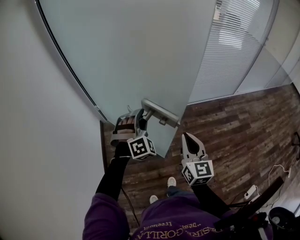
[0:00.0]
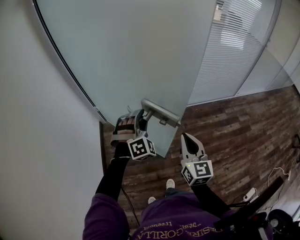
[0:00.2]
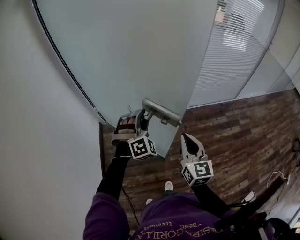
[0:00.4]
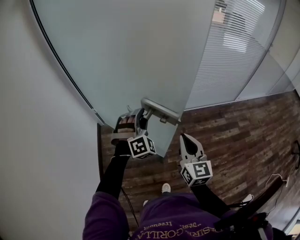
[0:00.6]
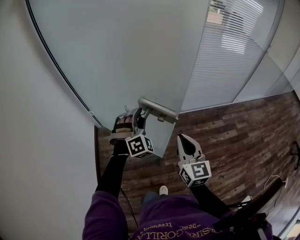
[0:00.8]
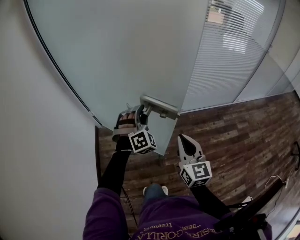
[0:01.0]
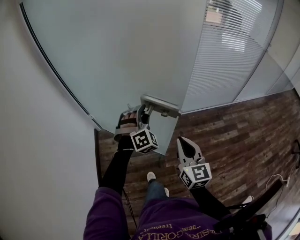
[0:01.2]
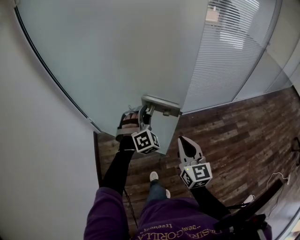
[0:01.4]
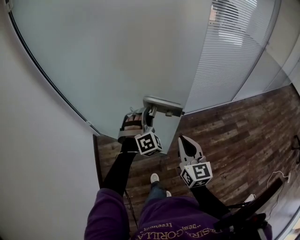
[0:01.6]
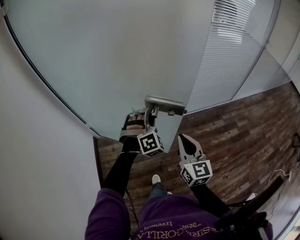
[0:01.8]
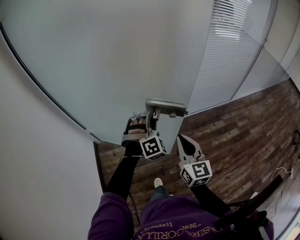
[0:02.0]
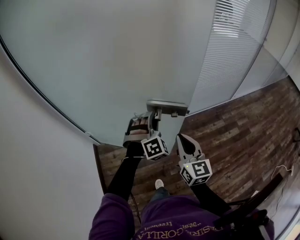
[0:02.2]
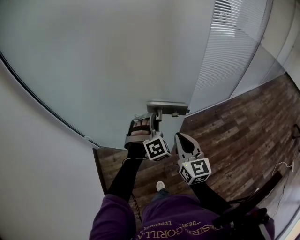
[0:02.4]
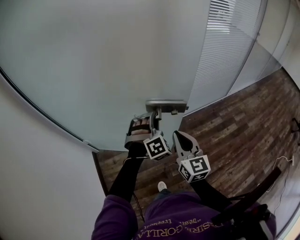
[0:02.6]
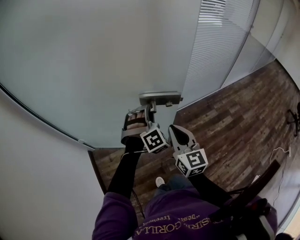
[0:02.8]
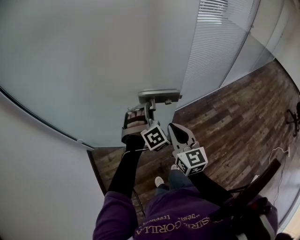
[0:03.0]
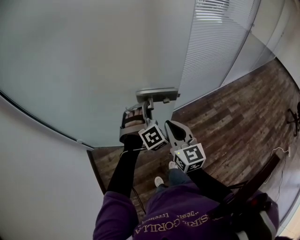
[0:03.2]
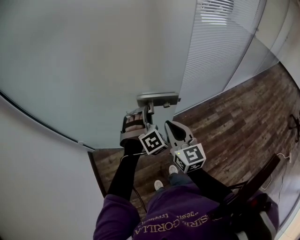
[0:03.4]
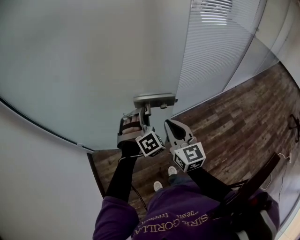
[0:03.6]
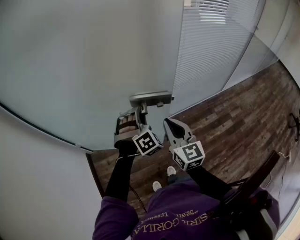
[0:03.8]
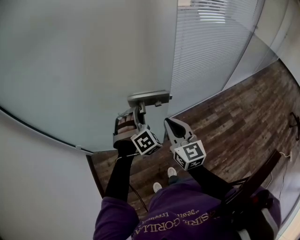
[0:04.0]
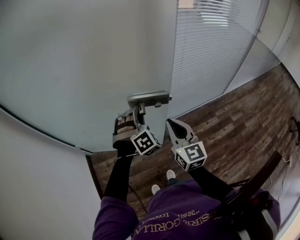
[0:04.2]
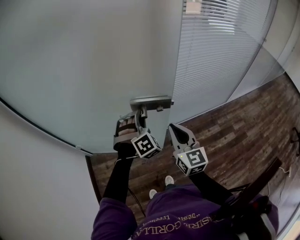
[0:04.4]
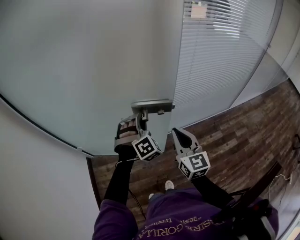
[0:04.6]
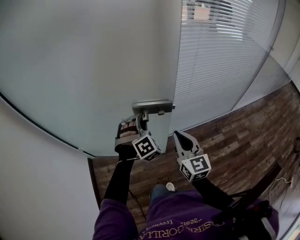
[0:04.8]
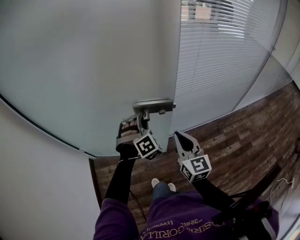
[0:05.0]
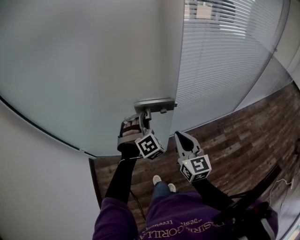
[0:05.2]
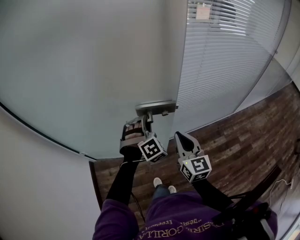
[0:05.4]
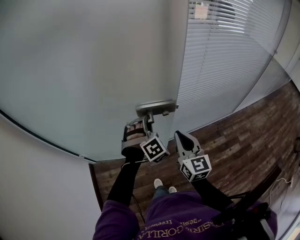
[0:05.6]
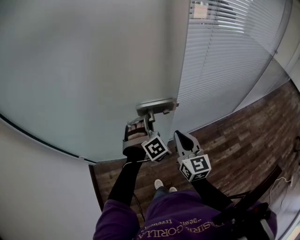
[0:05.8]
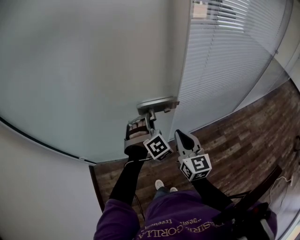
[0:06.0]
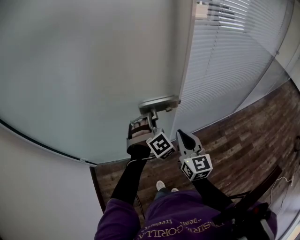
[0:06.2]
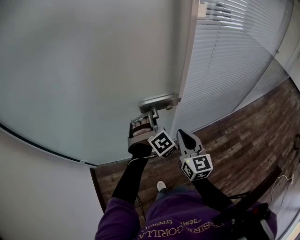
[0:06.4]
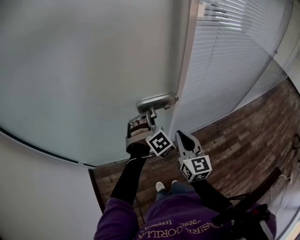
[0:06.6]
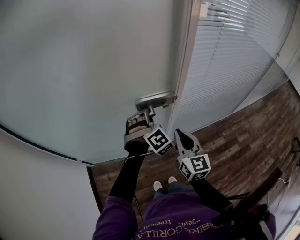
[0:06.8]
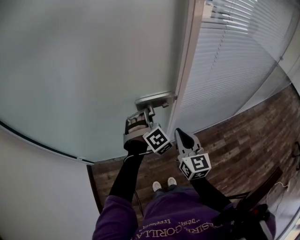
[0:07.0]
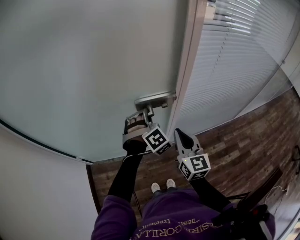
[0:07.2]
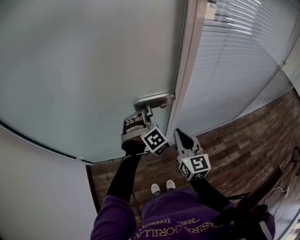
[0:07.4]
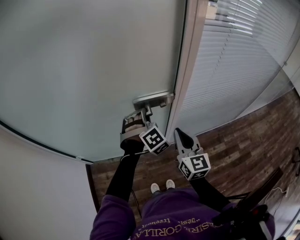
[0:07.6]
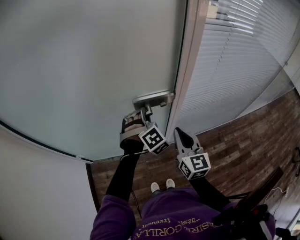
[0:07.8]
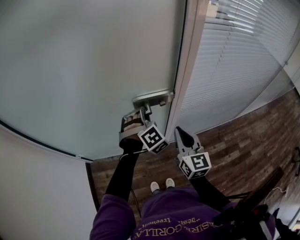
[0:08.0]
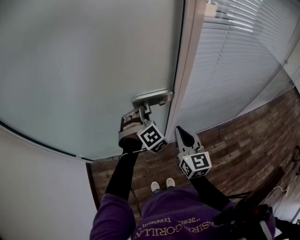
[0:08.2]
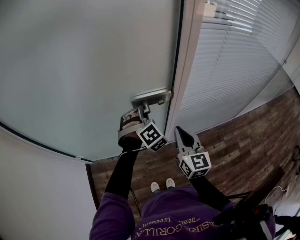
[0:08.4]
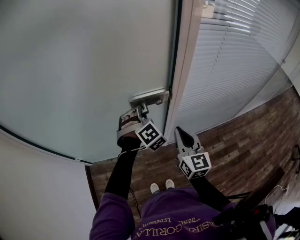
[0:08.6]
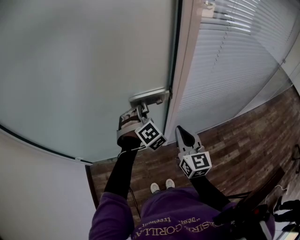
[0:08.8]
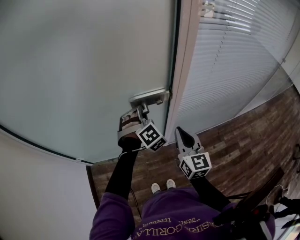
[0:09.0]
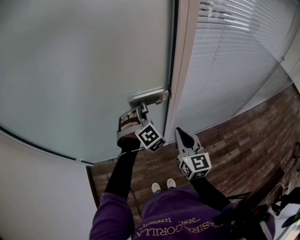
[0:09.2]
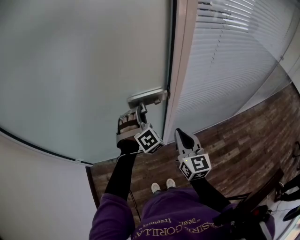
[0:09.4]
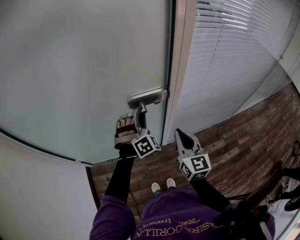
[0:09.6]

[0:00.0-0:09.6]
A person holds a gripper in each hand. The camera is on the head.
0:00.0 to 0:01.6: The two grippers go roughly 20 cm forward and to the right.
0:01.6 to 0:03.2: The grippers both shift forward by some 15 cm.
0:03.2 to 0:04.8: The right gripper travels to the right and forward by approximately 15 cm. Meanwhile the left gripper moves forward, approximately 10 cm.
0:04.8 to 0:06.4: Both grippers move forward, roughly 10 cm.
0:06.4 to 0:08.0: The left gripper changes place by roughly 5 cm.
0:08.0 to 0:09.6: The grippers stay close to where they were, moving slightly.

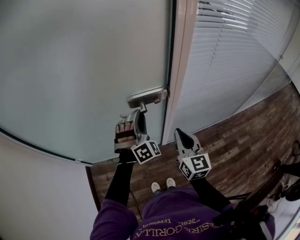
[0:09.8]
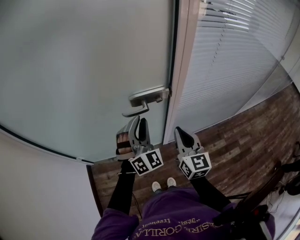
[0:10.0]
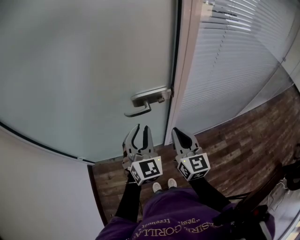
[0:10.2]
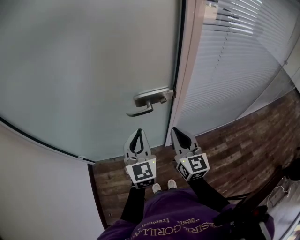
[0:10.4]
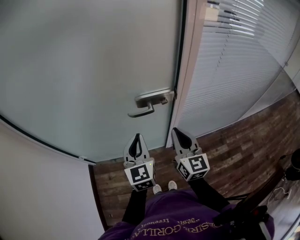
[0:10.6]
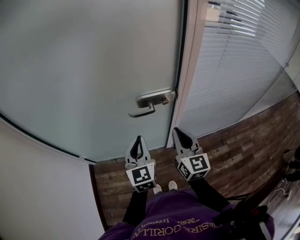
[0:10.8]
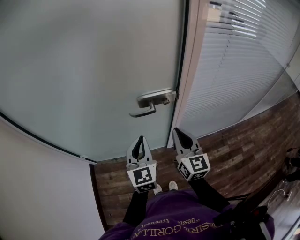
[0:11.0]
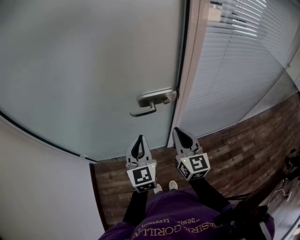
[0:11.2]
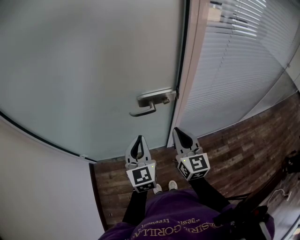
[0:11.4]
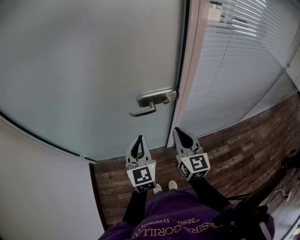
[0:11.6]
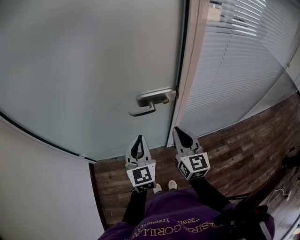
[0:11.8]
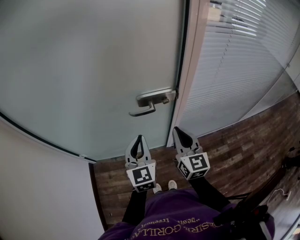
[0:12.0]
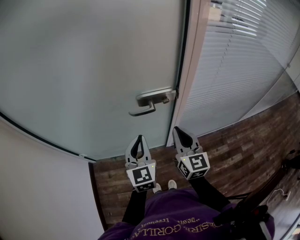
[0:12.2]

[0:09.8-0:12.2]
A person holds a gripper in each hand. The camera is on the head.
0:09.8 to 0:11.0: The left gripper goes roughly 10 cm backward and to the left, rolls counterclockwise, seen from behind, by about 70 degrees, and closes.
0:11.0 to 0:12.2: The two grippers keep their place.

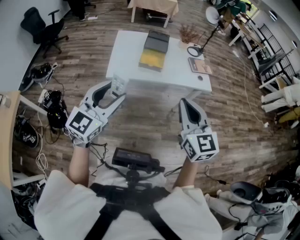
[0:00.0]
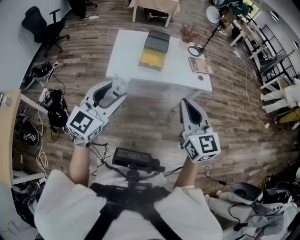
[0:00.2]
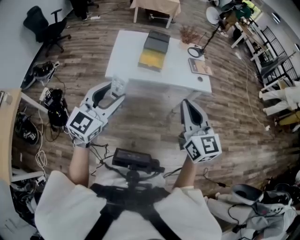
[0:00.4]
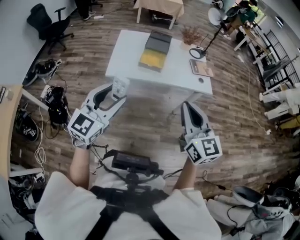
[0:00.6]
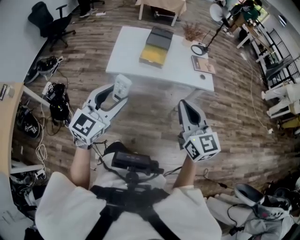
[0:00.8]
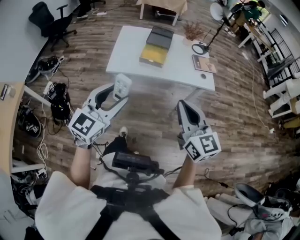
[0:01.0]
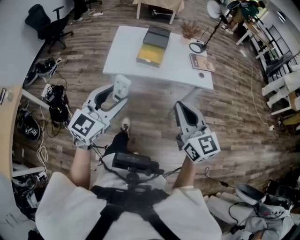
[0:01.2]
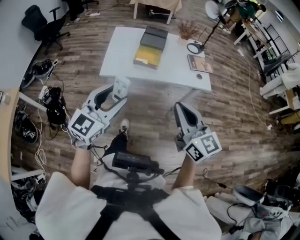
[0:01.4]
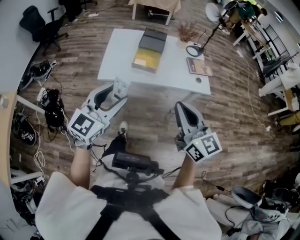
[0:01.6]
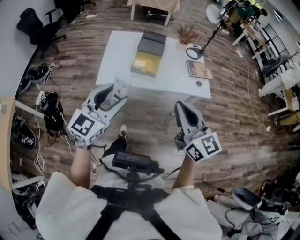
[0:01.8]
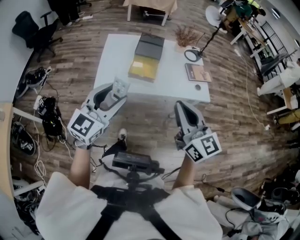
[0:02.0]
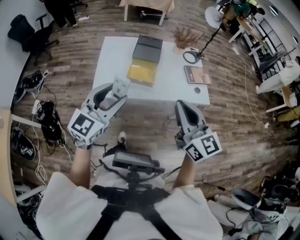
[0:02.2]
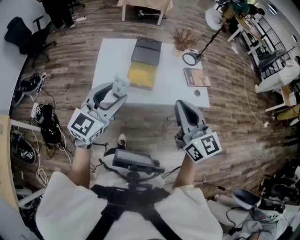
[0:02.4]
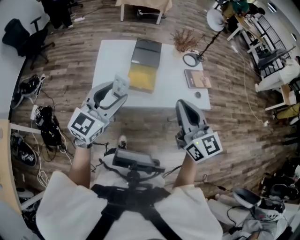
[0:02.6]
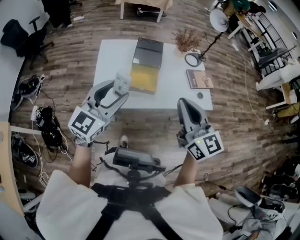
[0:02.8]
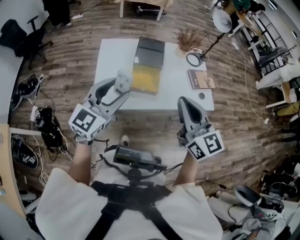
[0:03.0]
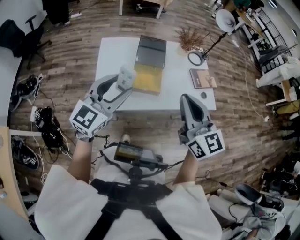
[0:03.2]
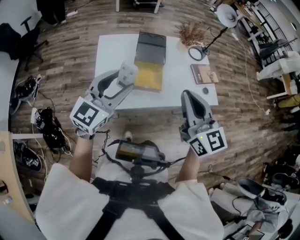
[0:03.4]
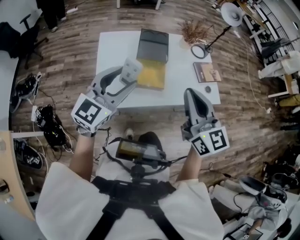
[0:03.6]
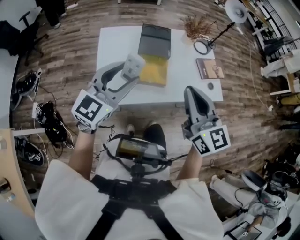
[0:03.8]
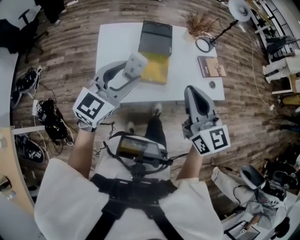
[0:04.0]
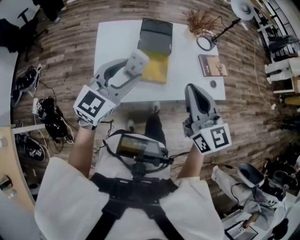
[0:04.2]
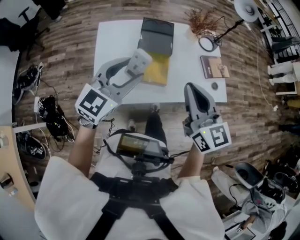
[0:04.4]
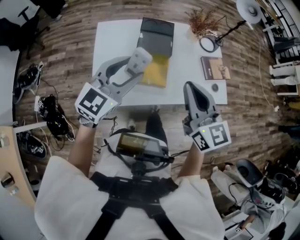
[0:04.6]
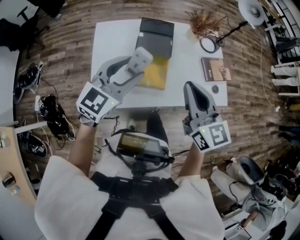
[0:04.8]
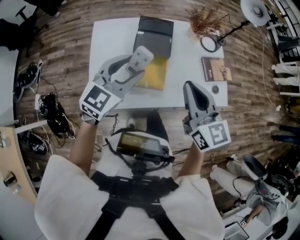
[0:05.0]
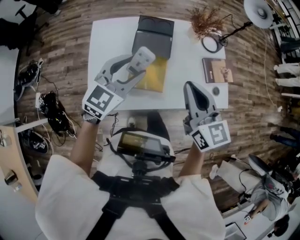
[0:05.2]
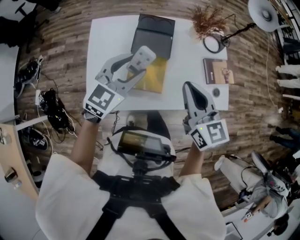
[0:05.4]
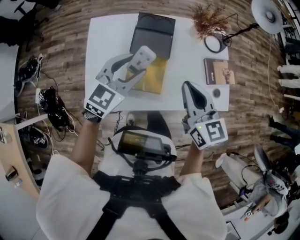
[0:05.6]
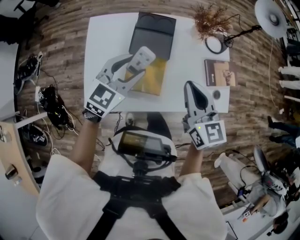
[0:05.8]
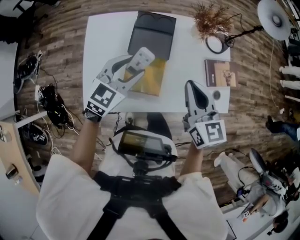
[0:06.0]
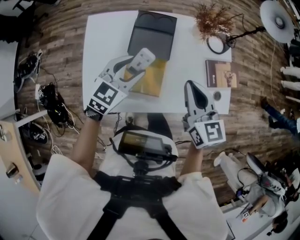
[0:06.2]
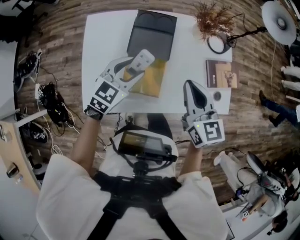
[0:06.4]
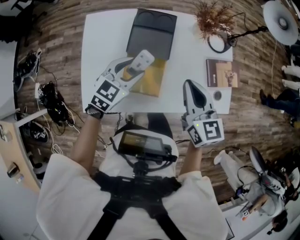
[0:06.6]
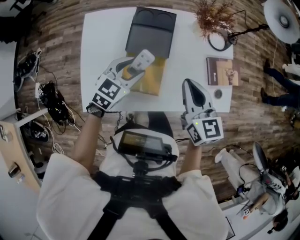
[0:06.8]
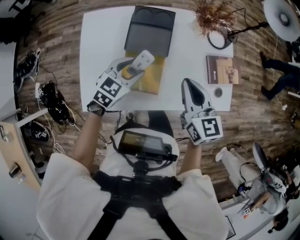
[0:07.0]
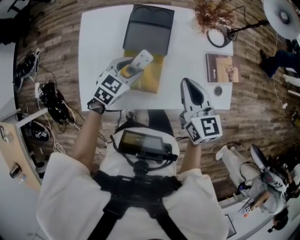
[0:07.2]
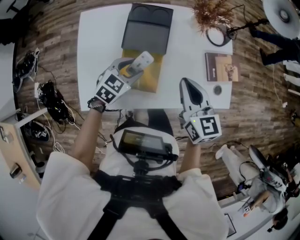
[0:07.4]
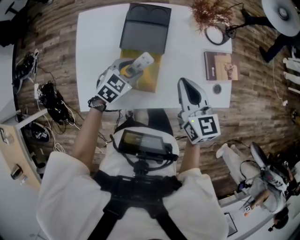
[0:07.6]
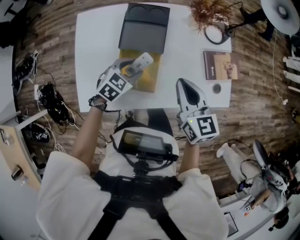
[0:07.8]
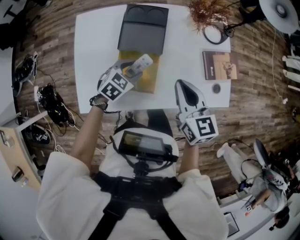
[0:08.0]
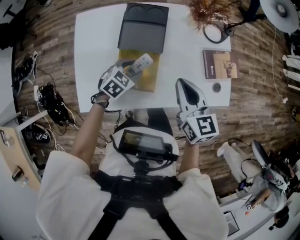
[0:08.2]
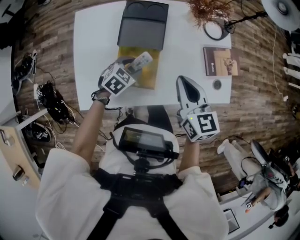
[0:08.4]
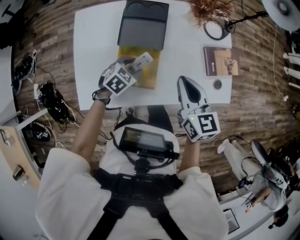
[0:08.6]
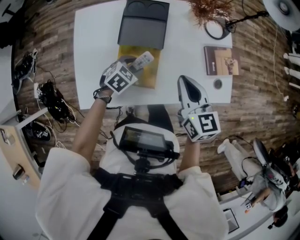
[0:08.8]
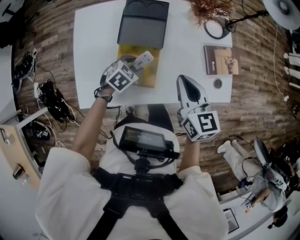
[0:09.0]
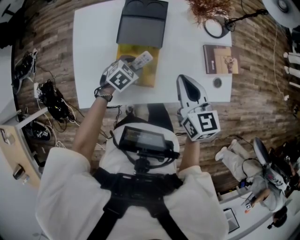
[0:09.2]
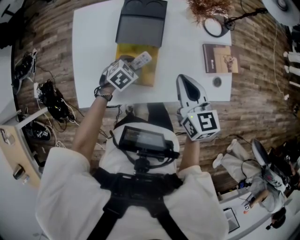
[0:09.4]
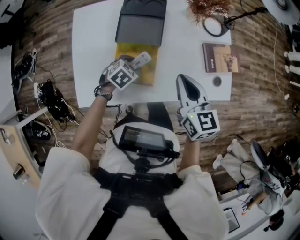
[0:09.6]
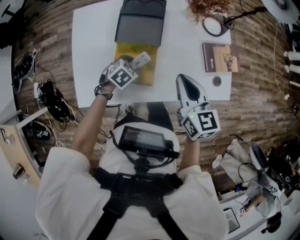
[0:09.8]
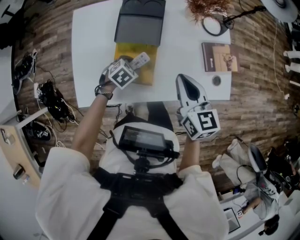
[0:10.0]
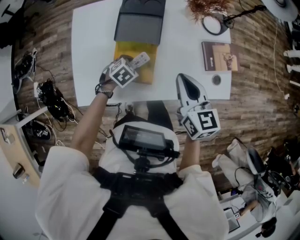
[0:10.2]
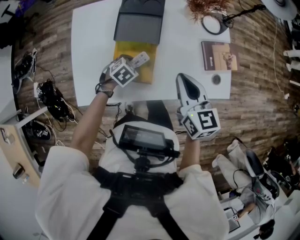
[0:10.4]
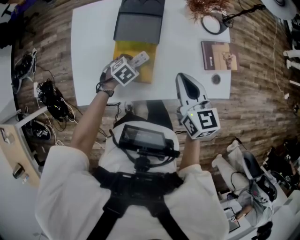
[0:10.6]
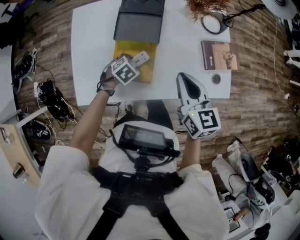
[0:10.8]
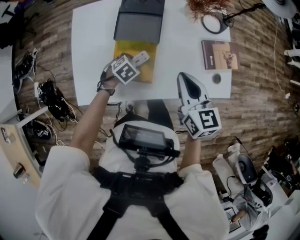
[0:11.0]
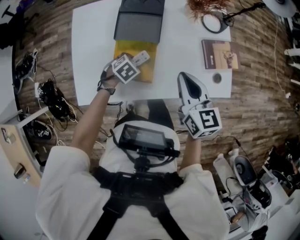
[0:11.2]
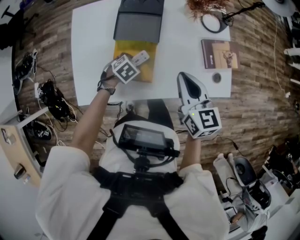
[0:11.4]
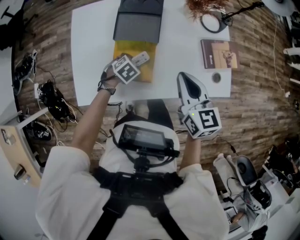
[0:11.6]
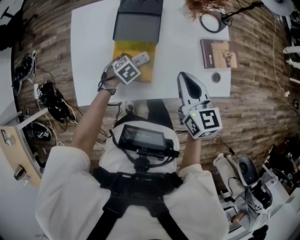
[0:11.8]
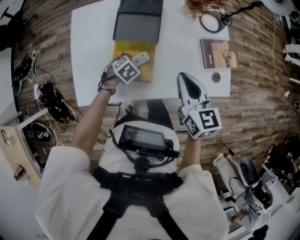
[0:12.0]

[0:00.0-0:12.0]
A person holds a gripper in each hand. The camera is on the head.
0:00.0 to 0:01.6: Both grippers travel together to the right and forward, some 10 cm.
0:01.6 to 0:03.0: The two grippers go approximately 25 cm forward.
0:03.0 to 0:04.4: The grippers both shift forward by about 10 cm.
0:04.4 to 0:06.0: Both grippers move forward and downward, approximately 20 cm.
0:06.0 to 0:07.6: The right gripper travels downward by approximately 5 cm. Meanwhile the left gripper is displaced downward by approximately 15 cm, and turns by about 20 degrees.
0:07.6 to 0:09.0: The left gripper is displaced downward by about 5 cm.
0:09.0 to 0:12.0: The grippers move only a little.
